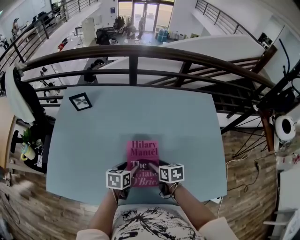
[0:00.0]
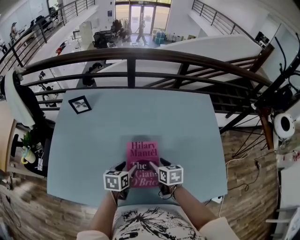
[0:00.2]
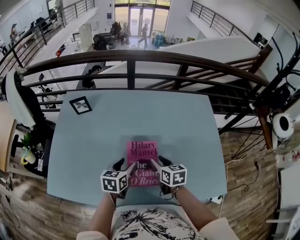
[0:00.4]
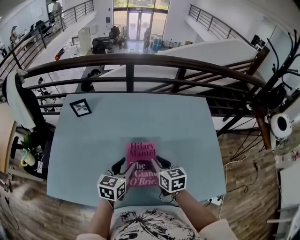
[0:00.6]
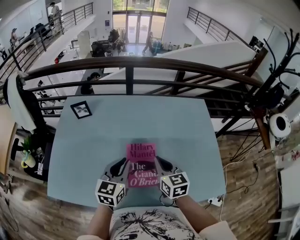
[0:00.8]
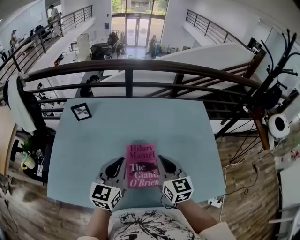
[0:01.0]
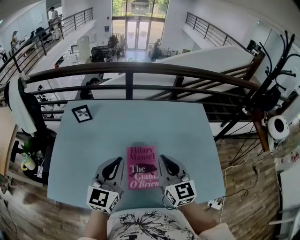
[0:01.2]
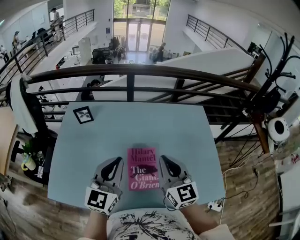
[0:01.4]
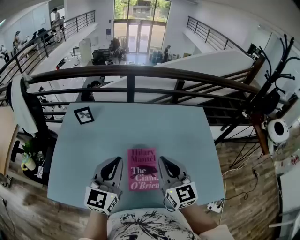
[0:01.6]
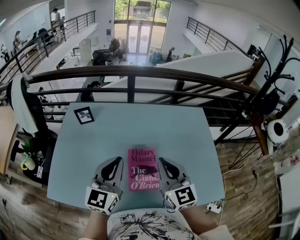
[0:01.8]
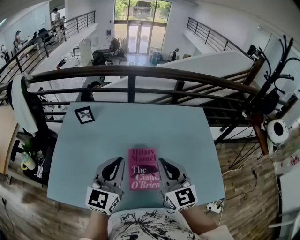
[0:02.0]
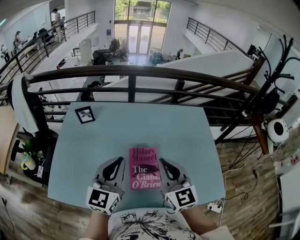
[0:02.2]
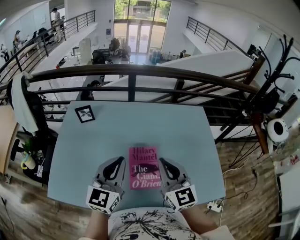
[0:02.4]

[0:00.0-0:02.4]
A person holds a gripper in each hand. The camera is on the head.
0.0 to 1.2 s: The two grippers go about 25 cm upward. The right gripper tilts its fingers approximately 40 degrees upward, and closes its fingers. Meanwhile the left gripper angles its fingers upward, by about 40 degrees, and closes its fingers.
1.2 to 2.4 s: There are only small adjustments of the grippers.

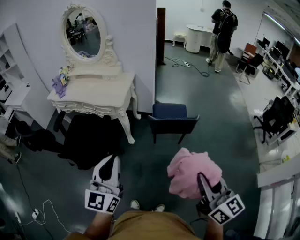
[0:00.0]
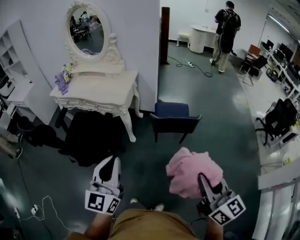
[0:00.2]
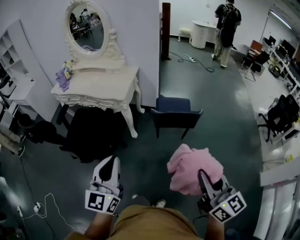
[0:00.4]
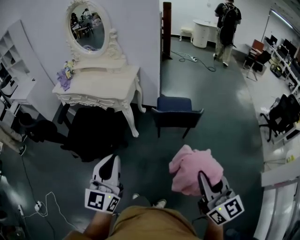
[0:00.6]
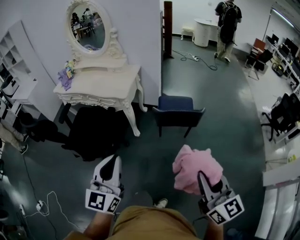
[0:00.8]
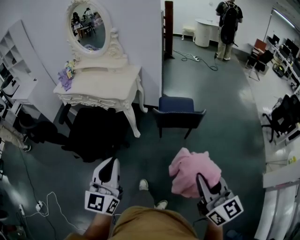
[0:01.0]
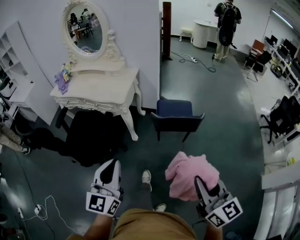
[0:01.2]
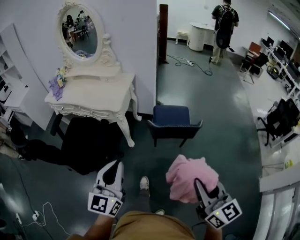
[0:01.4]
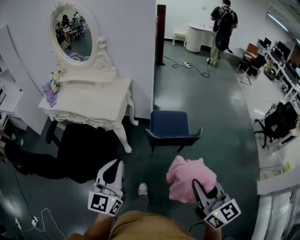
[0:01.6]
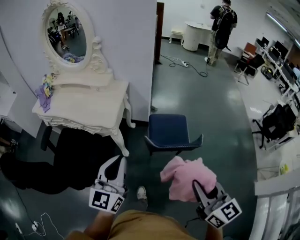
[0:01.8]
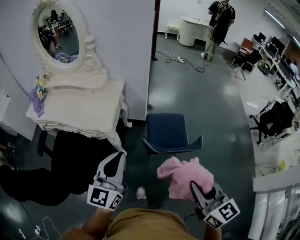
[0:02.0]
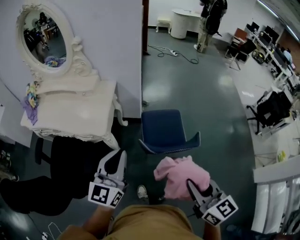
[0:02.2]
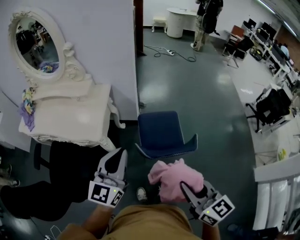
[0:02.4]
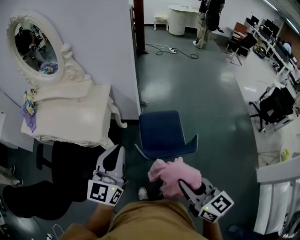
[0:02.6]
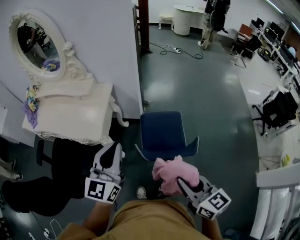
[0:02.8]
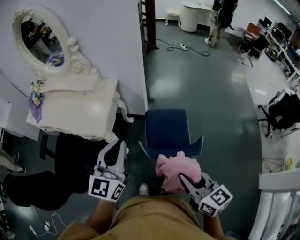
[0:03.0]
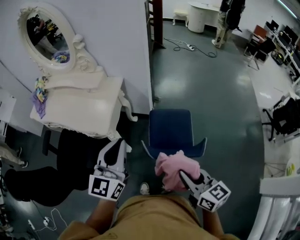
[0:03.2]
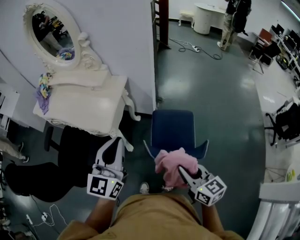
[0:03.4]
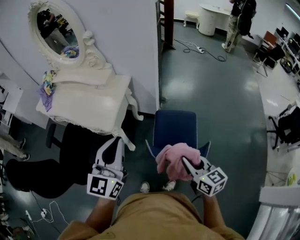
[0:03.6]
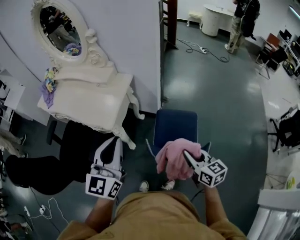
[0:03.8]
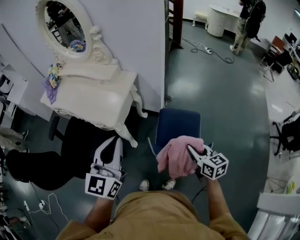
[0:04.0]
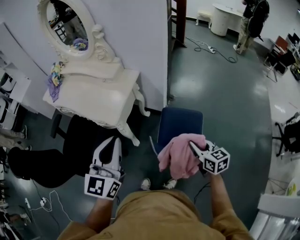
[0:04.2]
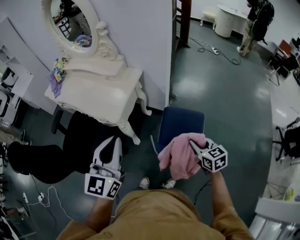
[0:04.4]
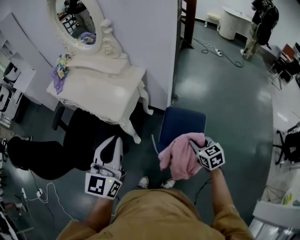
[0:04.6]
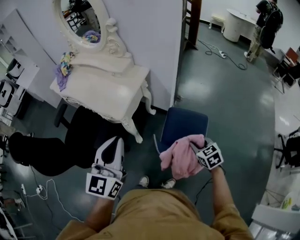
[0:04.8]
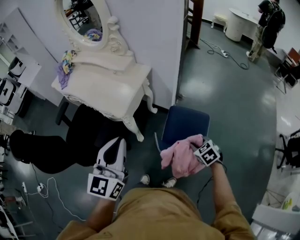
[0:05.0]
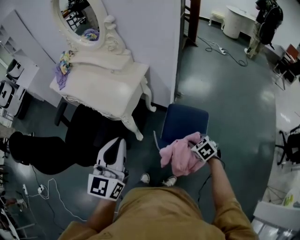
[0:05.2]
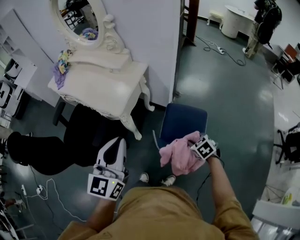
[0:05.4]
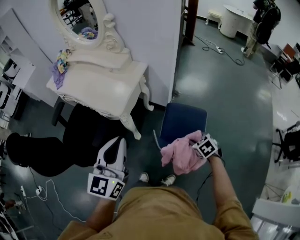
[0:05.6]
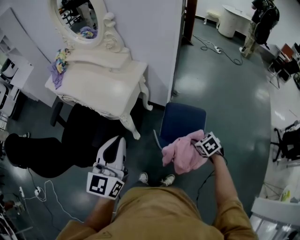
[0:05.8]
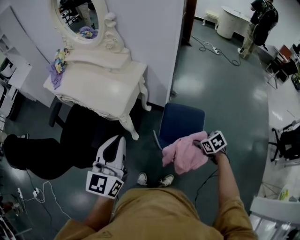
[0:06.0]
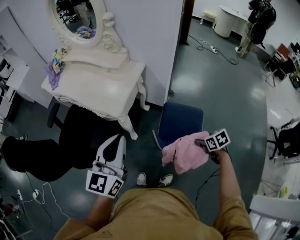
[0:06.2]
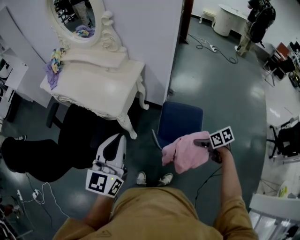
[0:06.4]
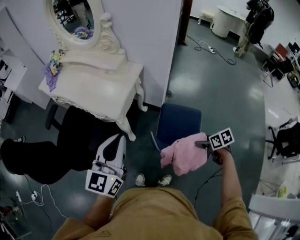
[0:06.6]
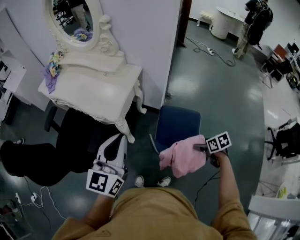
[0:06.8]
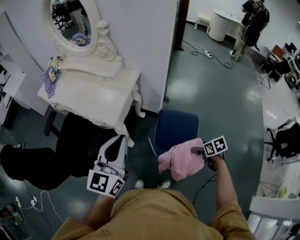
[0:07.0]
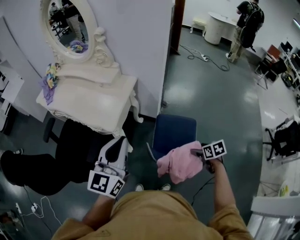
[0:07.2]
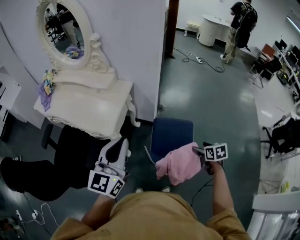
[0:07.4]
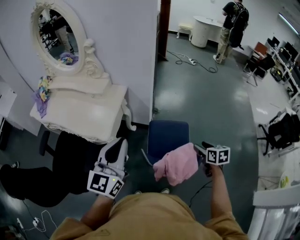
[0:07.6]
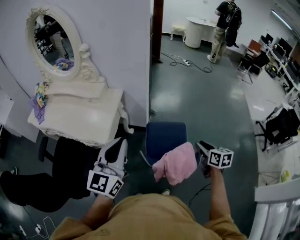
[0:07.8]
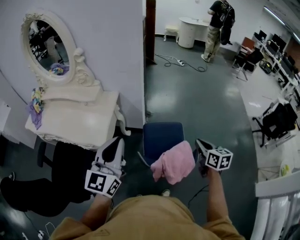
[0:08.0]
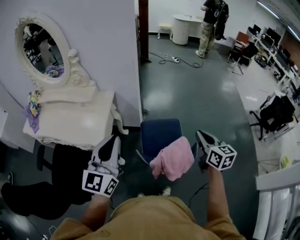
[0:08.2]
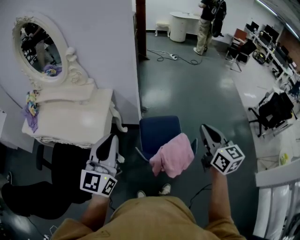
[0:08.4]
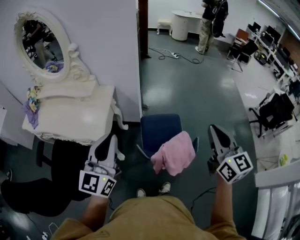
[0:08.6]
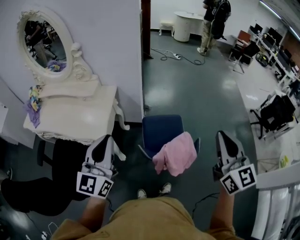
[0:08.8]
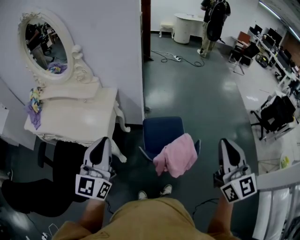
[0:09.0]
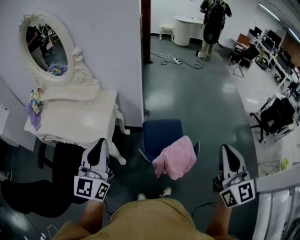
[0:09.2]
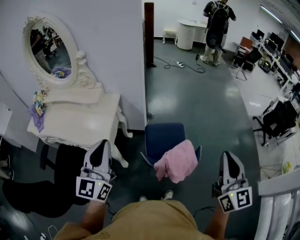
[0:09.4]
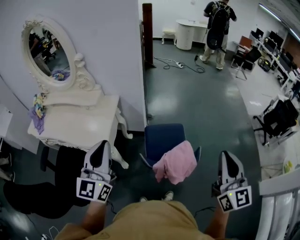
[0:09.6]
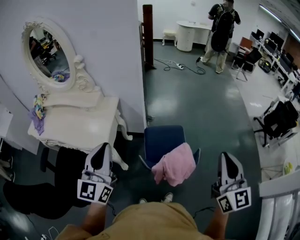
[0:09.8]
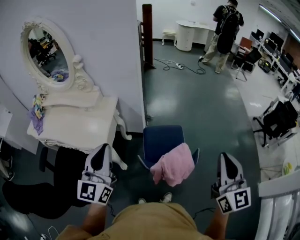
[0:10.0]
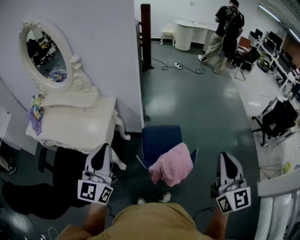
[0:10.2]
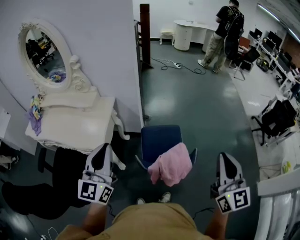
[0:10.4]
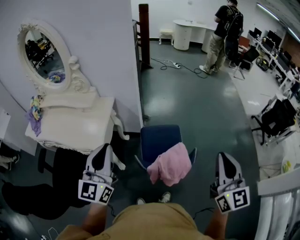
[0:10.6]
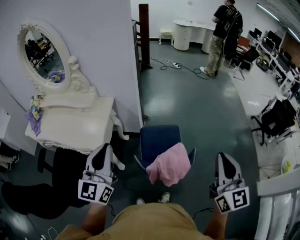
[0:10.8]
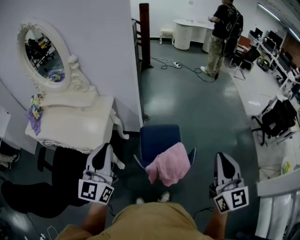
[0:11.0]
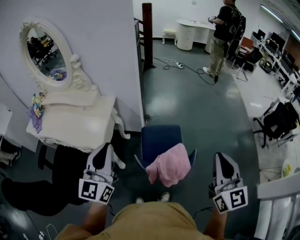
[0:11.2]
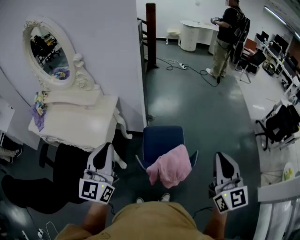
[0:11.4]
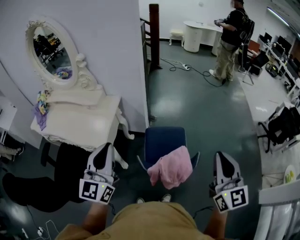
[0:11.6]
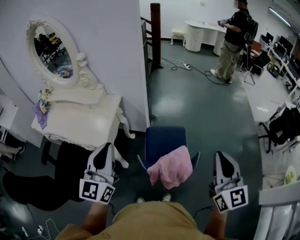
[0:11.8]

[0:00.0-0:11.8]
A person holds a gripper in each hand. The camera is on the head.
0.0 to 1.4 s: The left gripper is displaced forward and downward by approximately 10 cm. Meanwhile the right gripper is displaced forward by roughly 10 cm.
1.4 to 3.0 s: Both grippers move forward, approximately 35 cm.
3.0 to 4.4 s: The right gripper travels forward, downward and to the right by about 25 cm, and rotates some 20 degrees.
4.4 to 6.0 s: The right gripper shifts about 10 cm downward, and rotates approximately 30 degrees.
6.0 to 7.4 s: Both grippers travel together to the right, approximately 5 cm. The right gripper rotates about 30 degrees, and opens.
7.4 to 8.8 s: The right gripper heads upward, covering roughly 35 cm, angles its fingers upward, by roughly 50 degrees, and closes up.
8.8 to 10.4 s: The right gripper shifts approximately 5 cm to the right.
10.4 to 11.8 s: The grippers make only small movements.

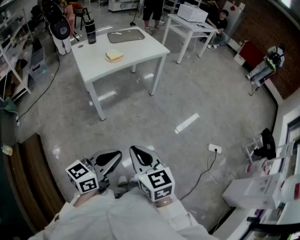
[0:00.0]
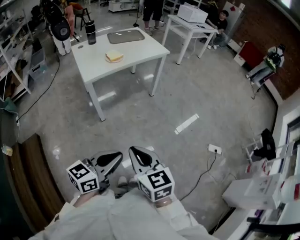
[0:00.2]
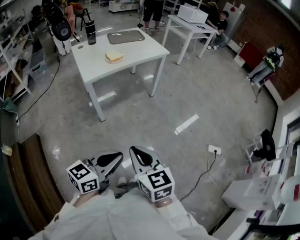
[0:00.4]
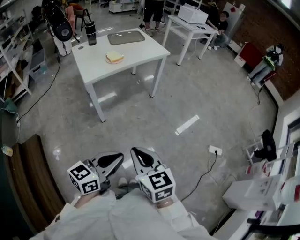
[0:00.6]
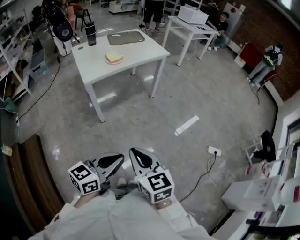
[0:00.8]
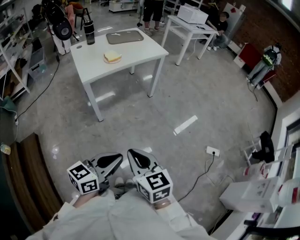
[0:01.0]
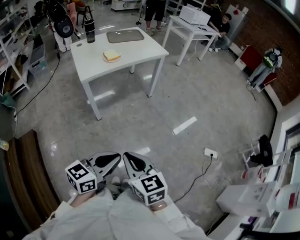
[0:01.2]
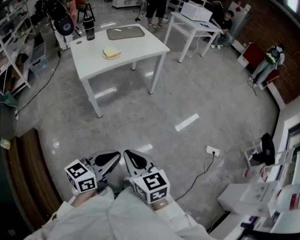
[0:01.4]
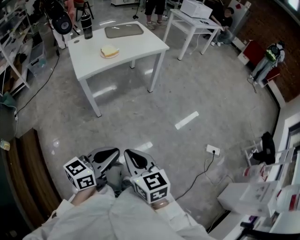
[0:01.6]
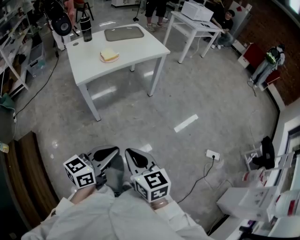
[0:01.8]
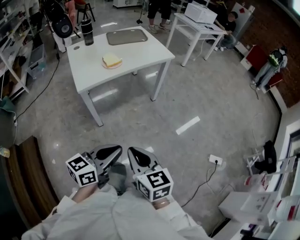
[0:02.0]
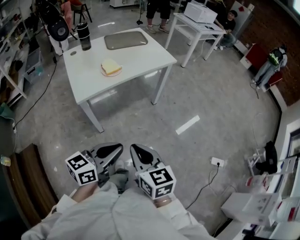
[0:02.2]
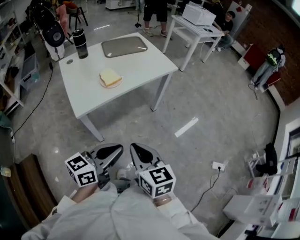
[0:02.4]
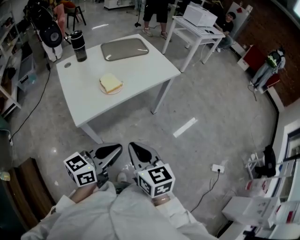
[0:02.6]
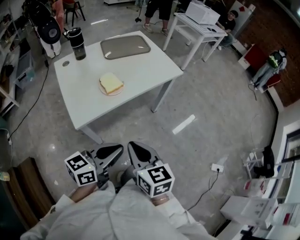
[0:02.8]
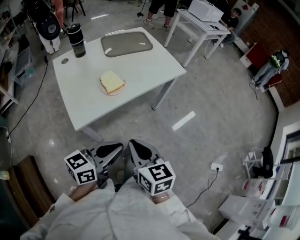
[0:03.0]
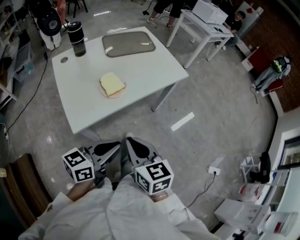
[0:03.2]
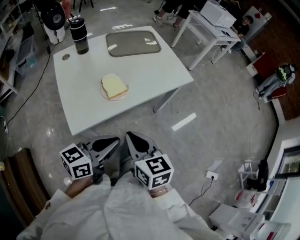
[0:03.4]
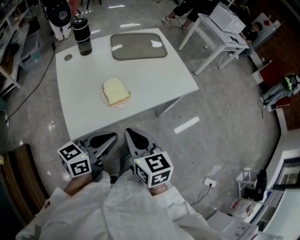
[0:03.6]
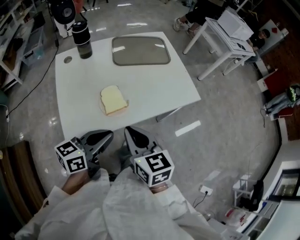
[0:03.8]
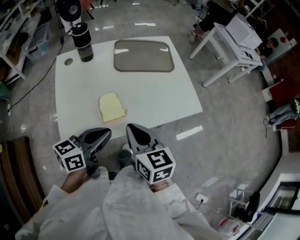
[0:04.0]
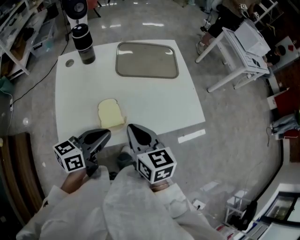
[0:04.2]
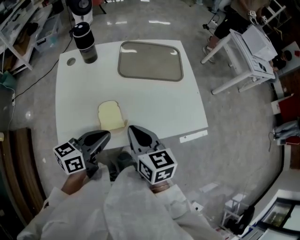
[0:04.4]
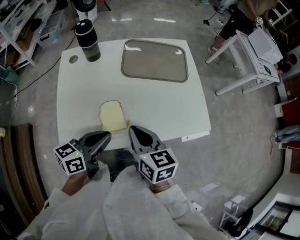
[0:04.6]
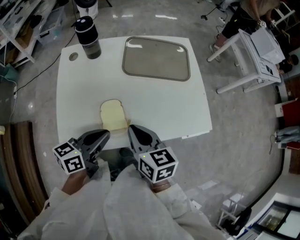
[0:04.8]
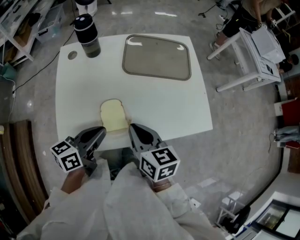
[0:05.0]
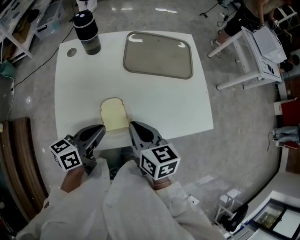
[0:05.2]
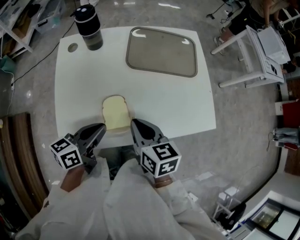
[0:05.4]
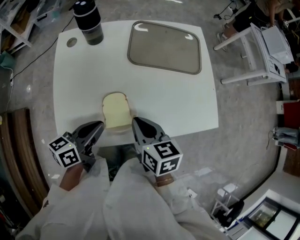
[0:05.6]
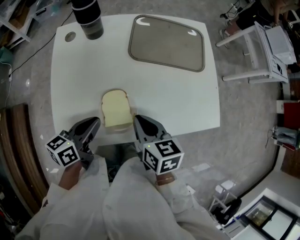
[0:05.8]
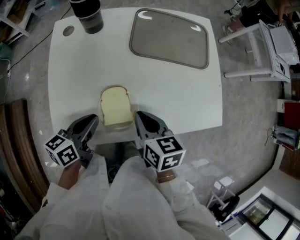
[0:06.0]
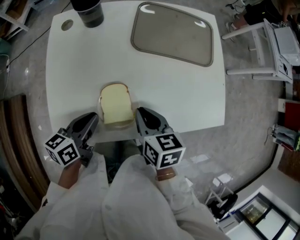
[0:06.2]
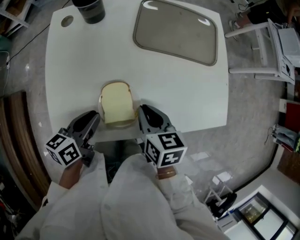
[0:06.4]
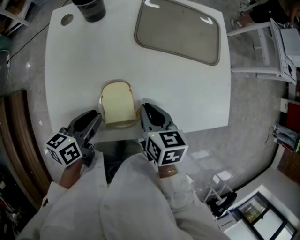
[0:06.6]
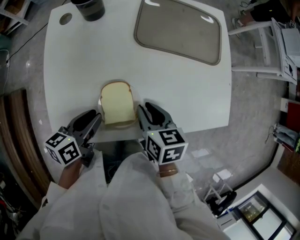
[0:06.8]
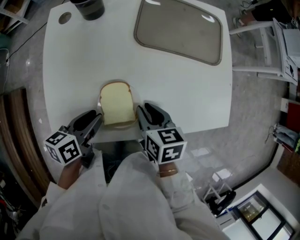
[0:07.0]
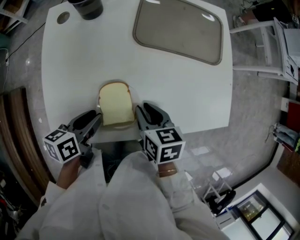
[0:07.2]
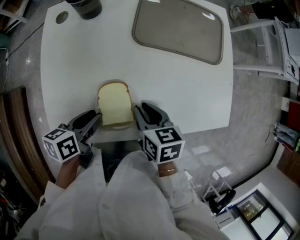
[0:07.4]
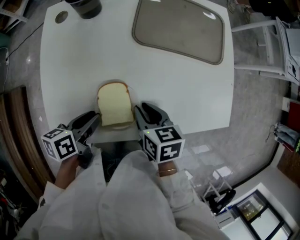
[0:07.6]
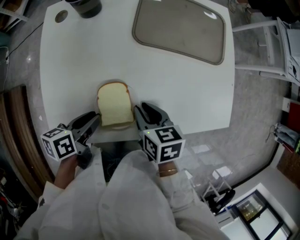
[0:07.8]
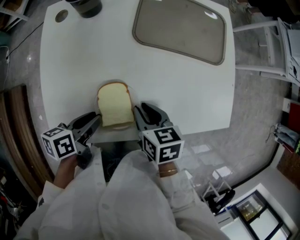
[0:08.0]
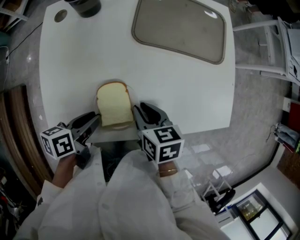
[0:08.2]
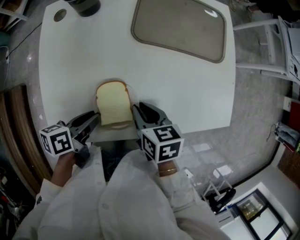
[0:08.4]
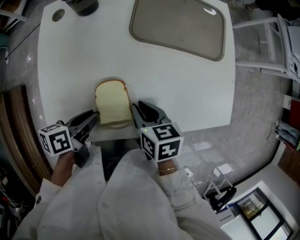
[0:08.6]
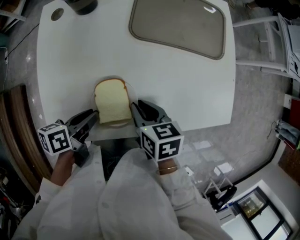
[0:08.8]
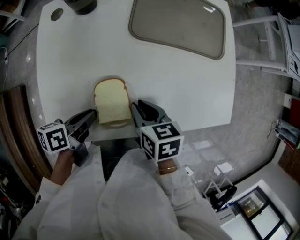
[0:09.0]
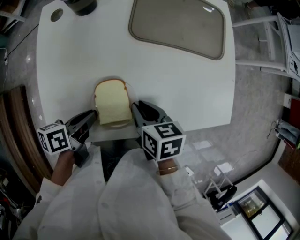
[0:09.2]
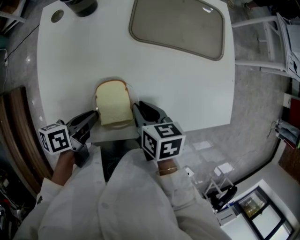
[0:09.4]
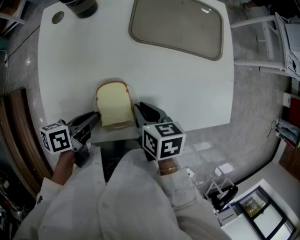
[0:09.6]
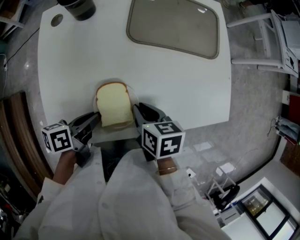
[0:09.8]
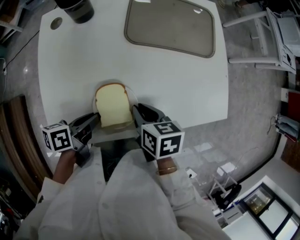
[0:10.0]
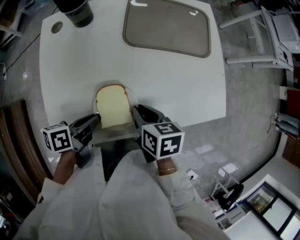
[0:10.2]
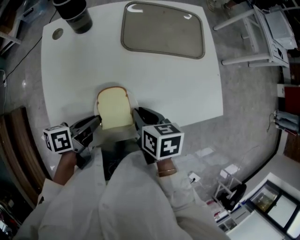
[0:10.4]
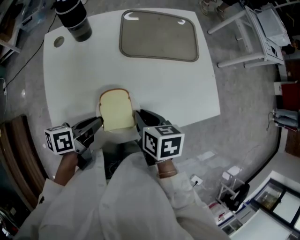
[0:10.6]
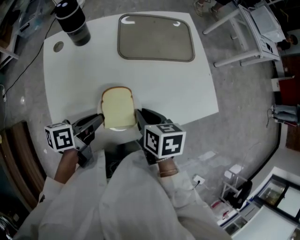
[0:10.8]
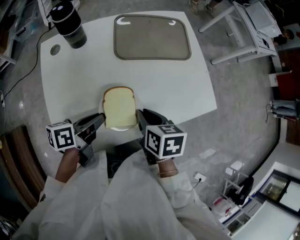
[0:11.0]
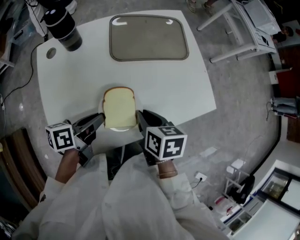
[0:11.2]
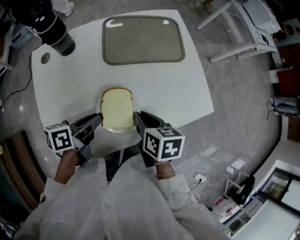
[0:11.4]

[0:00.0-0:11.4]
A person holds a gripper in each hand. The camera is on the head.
0.0 to 1.4 s: The left gripper changes place by approximately 5 cm.
1.4 to 2.8 s: The pair of grippers is taken forward and to the left, approximately 40 cm.
2.8 to 4.2 s: The grippers both shift forward by roughly 35 cm. The right gripper changes its angle by roughly 20 degrees. The left gripper rotates approximately 20 degrees.
4.2 to 5.6 s: The right gripper shifts roughly 10 cm downward and forward; the left gripper goes roughly 10 cm to the left, downward and forward.
5.6 to 7.2 s: Both grippers travel together downward, some 10 cm. The left gripper swivels about 20 degrees, and opens up.
7.2 to 10.0 s: The grippers move only a little.
10.0 to 11.4 s: The right gripper shifts approximately 5 cm to the right; the left gripper heads forward and upward, covering roughly 10 cm.
